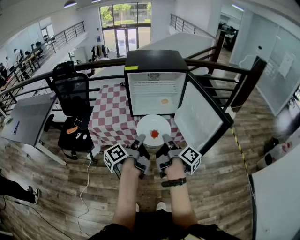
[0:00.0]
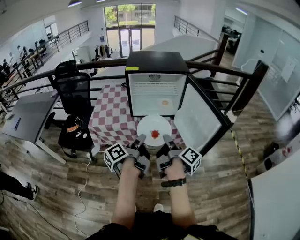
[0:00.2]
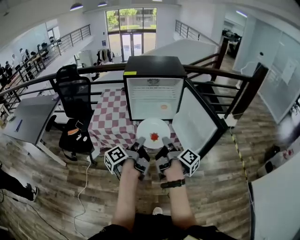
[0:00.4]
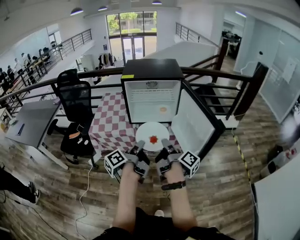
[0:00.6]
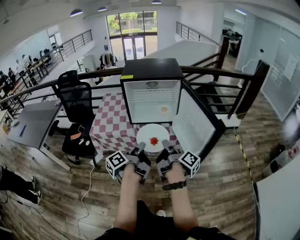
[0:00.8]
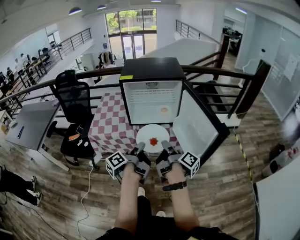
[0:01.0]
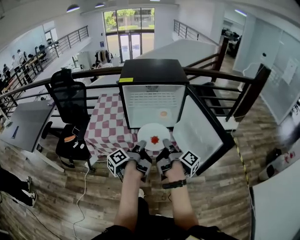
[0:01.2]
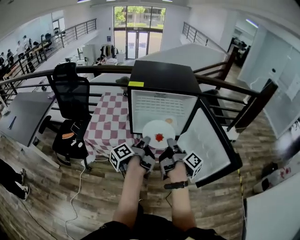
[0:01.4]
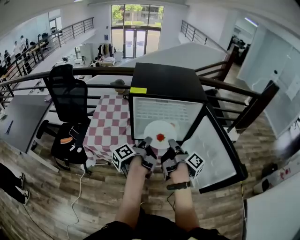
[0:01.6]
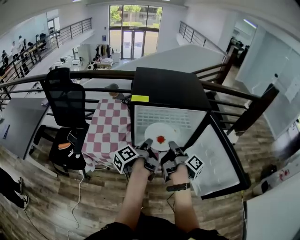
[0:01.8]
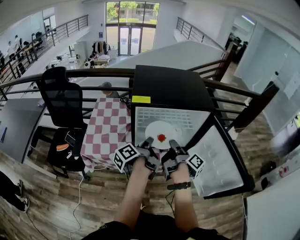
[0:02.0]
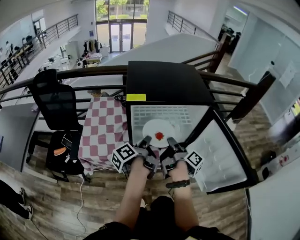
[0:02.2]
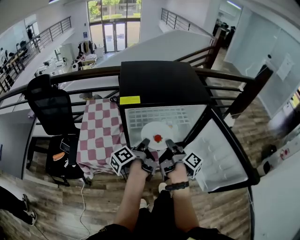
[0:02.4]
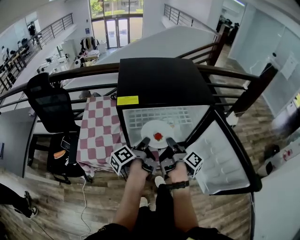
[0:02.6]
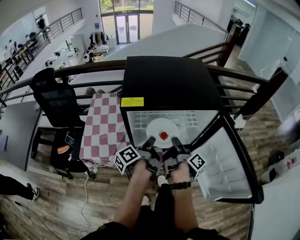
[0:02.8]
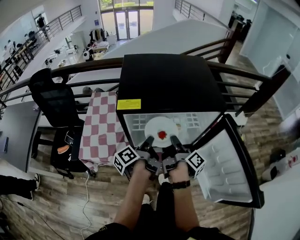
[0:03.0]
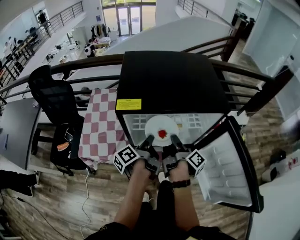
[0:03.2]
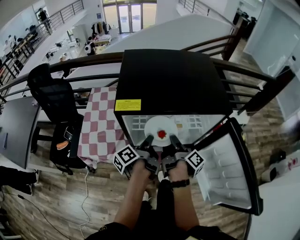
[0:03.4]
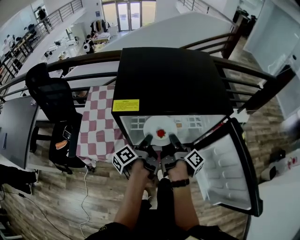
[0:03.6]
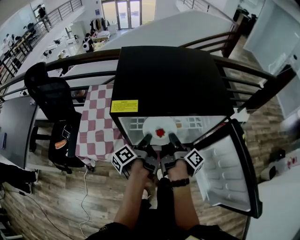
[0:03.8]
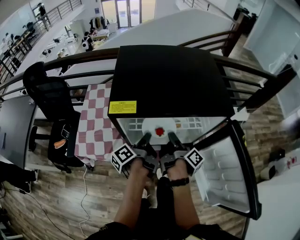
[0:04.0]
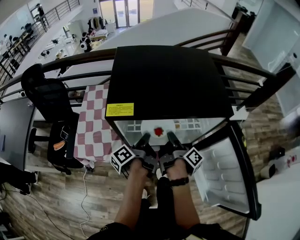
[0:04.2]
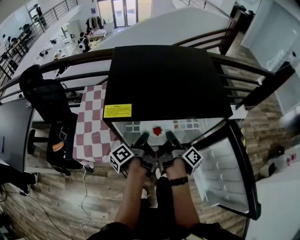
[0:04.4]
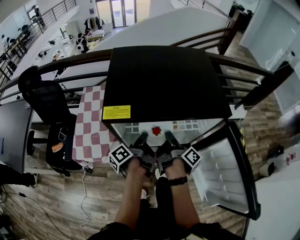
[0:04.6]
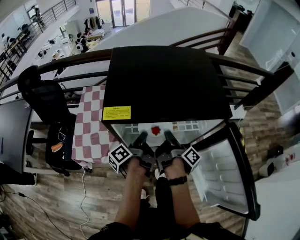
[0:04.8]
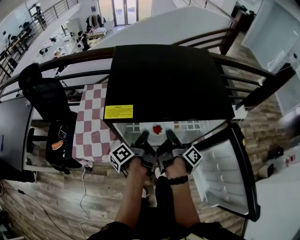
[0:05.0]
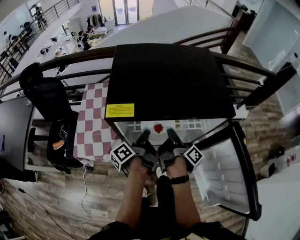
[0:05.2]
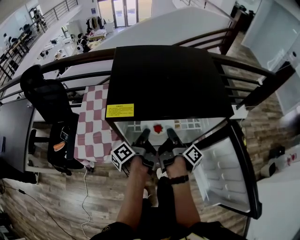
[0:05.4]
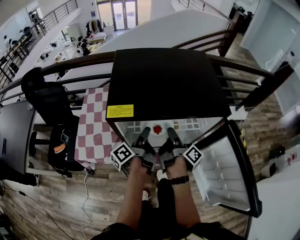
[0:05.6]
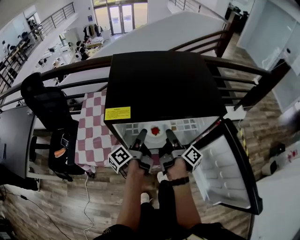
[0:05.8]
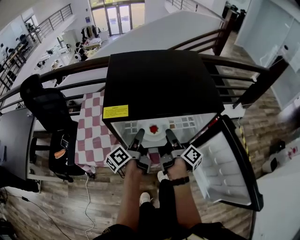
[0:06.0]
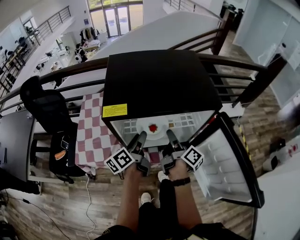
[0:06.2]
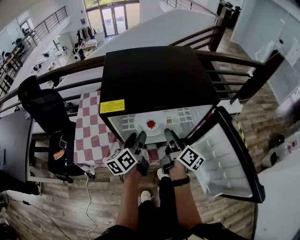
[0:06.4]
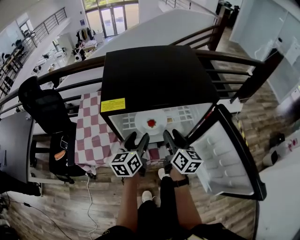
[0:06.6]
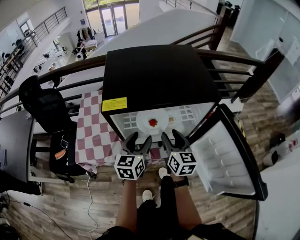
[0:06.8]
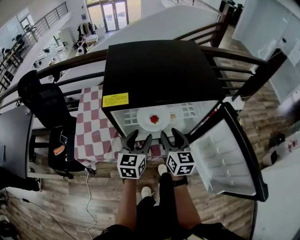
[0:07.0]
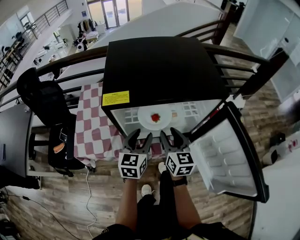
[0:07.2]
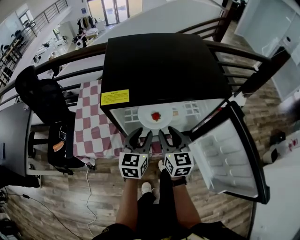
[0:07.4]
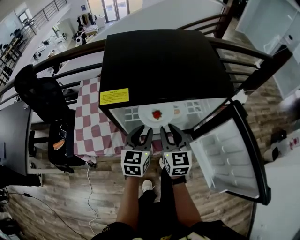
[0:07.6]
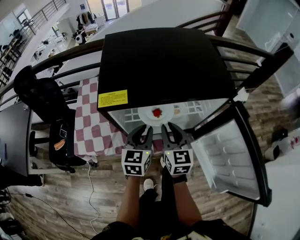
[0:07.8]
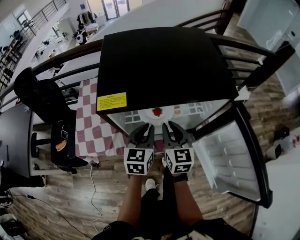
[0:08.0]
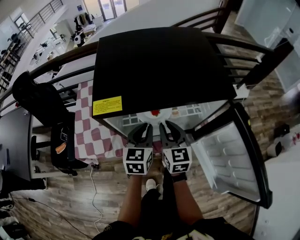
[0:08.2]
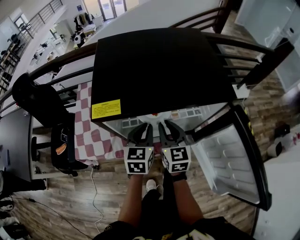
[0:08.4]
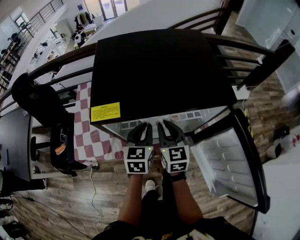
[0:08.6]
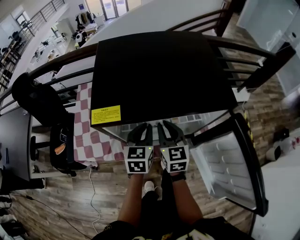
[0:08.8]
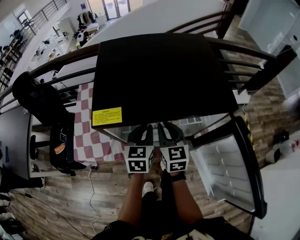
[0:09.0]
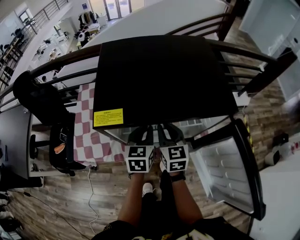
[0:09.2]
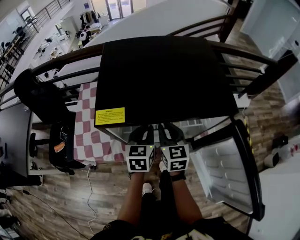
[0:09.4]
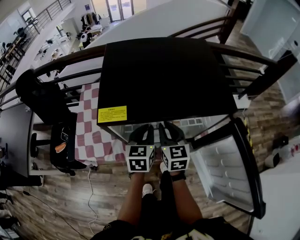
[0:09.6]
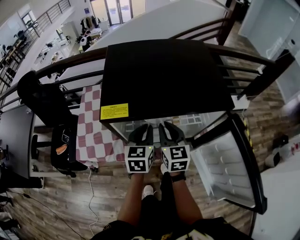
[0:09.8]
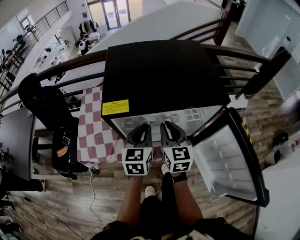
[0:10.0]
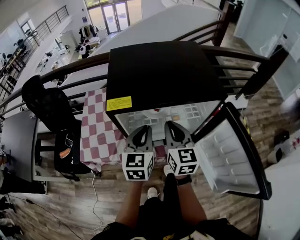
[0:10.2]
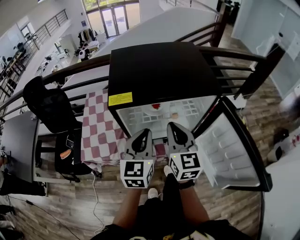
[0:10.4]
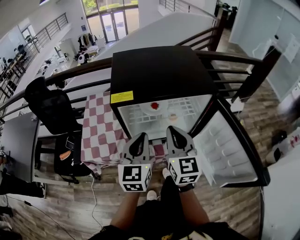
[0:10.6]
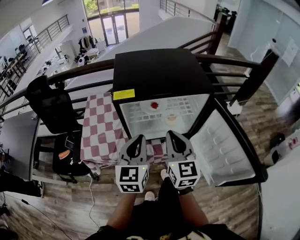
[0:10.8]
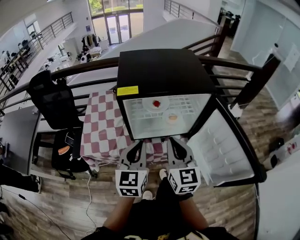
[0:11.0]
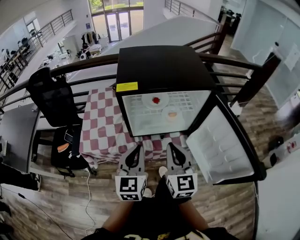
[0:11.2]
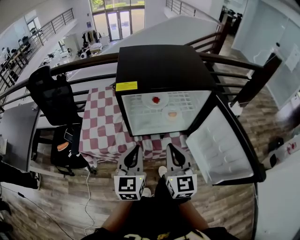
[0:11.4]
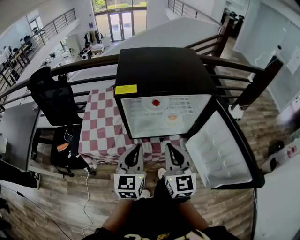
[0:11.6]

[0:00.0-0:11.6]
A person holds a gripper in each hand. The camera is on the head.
0:00.0 to 0:01.4: Both grippers travel together forward, some 15 cm.
0:01.4 to 0:02.8: The right gripper heads forward and downward, covering about 20 cm. The left gripper is displaced forward by roughly 20 cm.
0:02.8 to 0:04.4: The two grippers go roughly 5 cm forward.
0:04.4 to 0:05.8: The left gripper opens its fingers, while the right gripper opens its fingers.
0:05.8 to 0:07.2: The left gripper moves about 5 cm, and rotates around the line of its fingers by approximately 70 degrees, clockwise from behind; the right gripper changes place by about 5 cm, and rolls counterclockwise, seen from behind, by roughly 80 degrees.
0:07.2 to 0:08.8: The two grippers go approximately 5 cm forward. The left gripper closes; the right gripper closes up.
0:08.8 to 0:10.2: The two grippers go about 10 cm upward and backward.
0:10.2 to 0:11.6: The grippers both shift backward by approximately 15 cm.

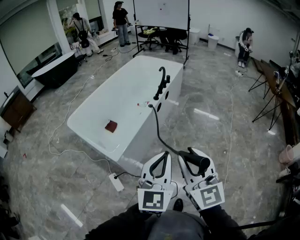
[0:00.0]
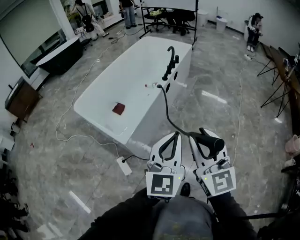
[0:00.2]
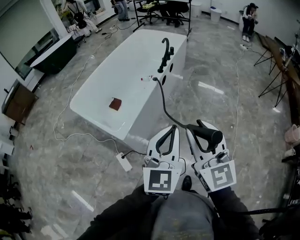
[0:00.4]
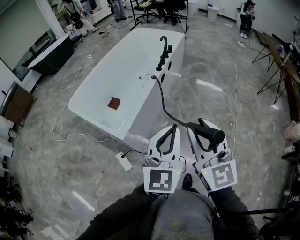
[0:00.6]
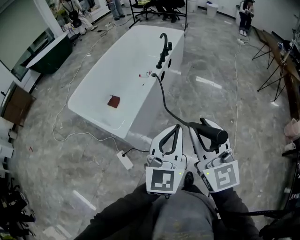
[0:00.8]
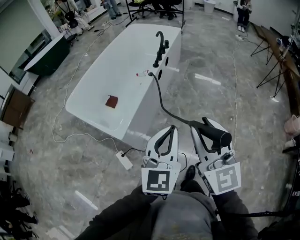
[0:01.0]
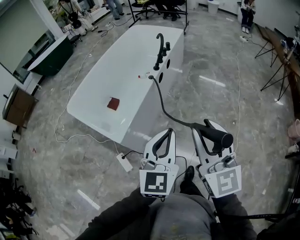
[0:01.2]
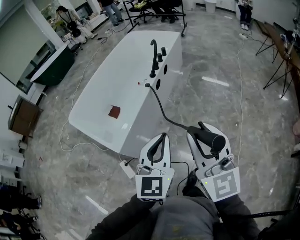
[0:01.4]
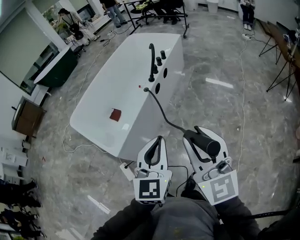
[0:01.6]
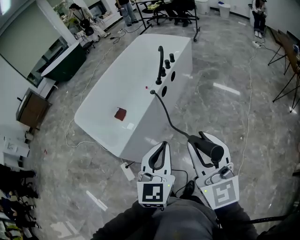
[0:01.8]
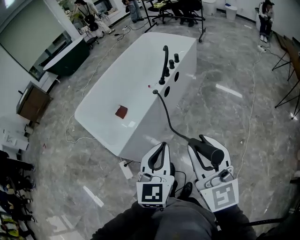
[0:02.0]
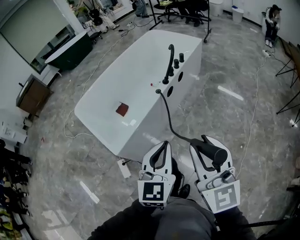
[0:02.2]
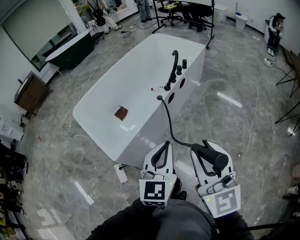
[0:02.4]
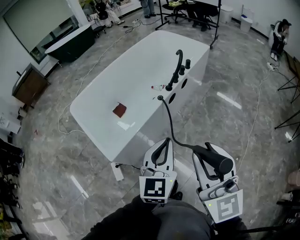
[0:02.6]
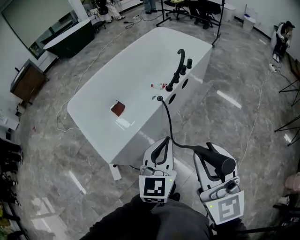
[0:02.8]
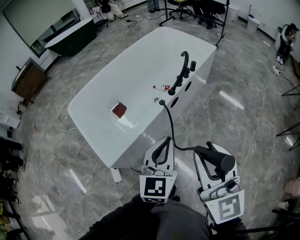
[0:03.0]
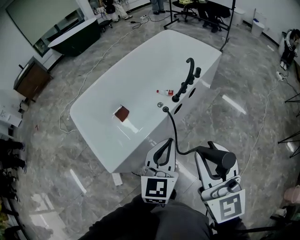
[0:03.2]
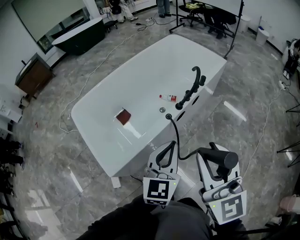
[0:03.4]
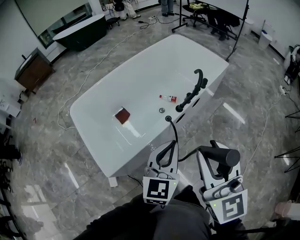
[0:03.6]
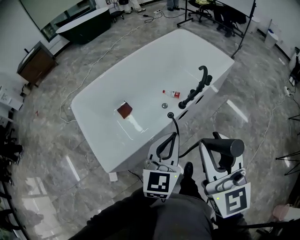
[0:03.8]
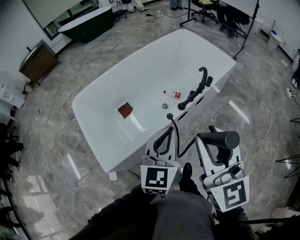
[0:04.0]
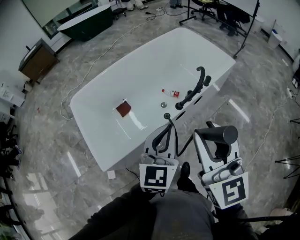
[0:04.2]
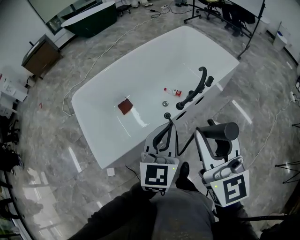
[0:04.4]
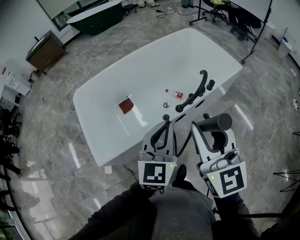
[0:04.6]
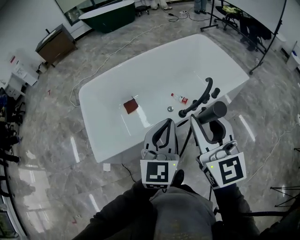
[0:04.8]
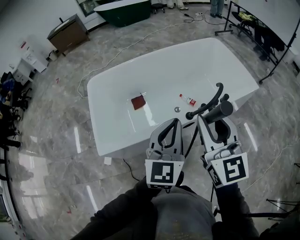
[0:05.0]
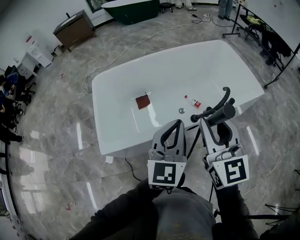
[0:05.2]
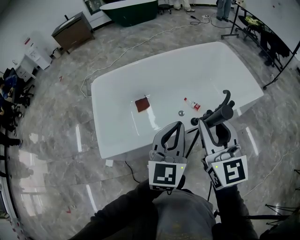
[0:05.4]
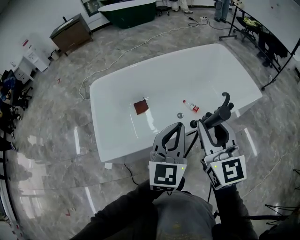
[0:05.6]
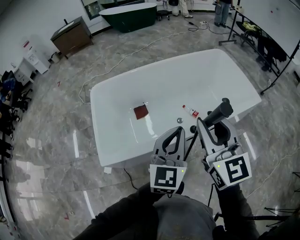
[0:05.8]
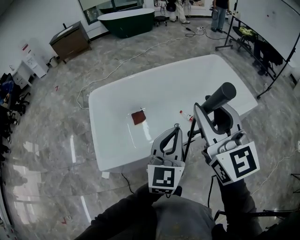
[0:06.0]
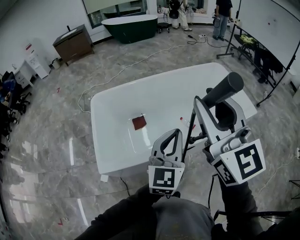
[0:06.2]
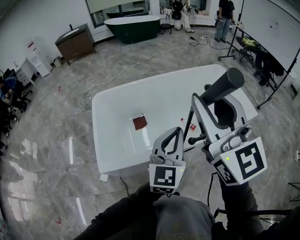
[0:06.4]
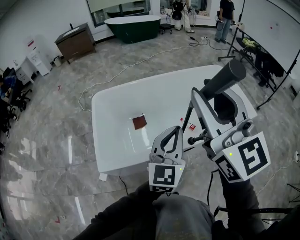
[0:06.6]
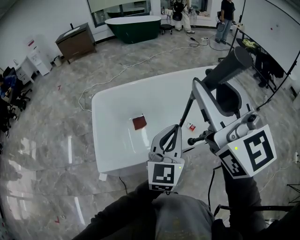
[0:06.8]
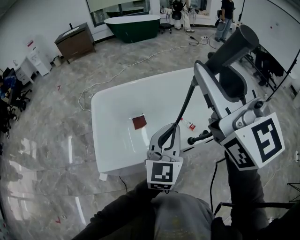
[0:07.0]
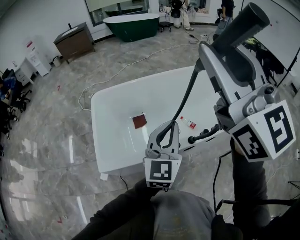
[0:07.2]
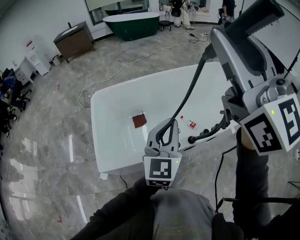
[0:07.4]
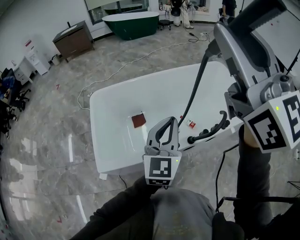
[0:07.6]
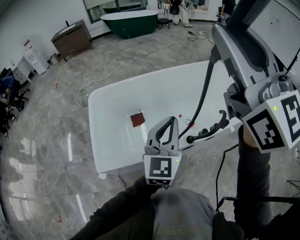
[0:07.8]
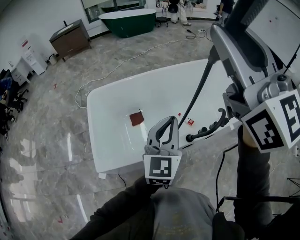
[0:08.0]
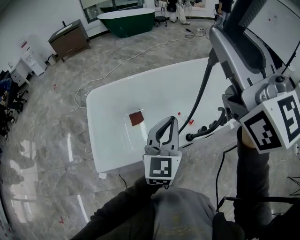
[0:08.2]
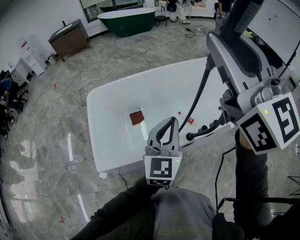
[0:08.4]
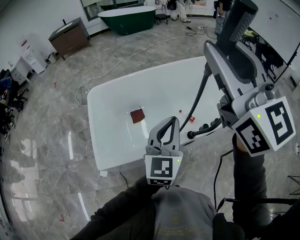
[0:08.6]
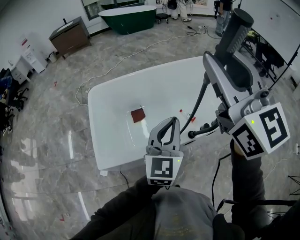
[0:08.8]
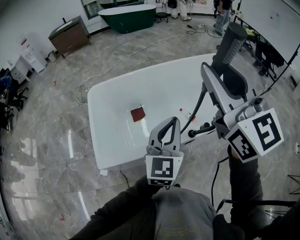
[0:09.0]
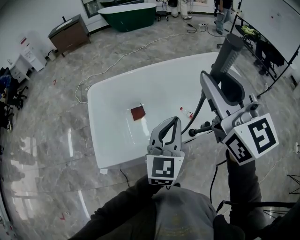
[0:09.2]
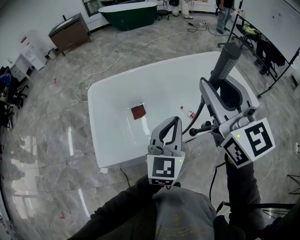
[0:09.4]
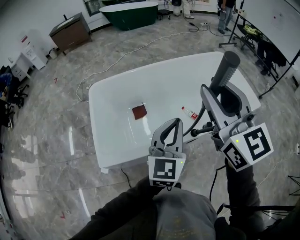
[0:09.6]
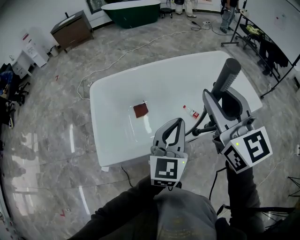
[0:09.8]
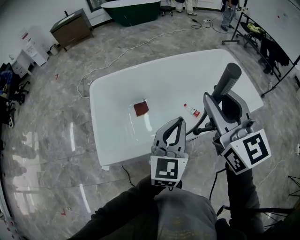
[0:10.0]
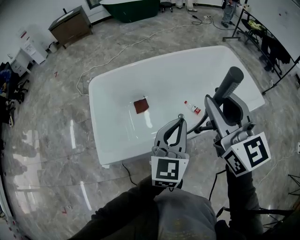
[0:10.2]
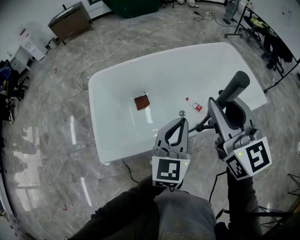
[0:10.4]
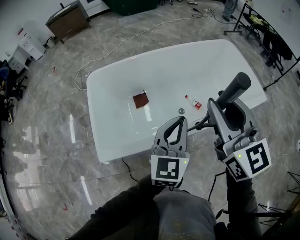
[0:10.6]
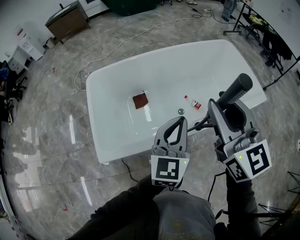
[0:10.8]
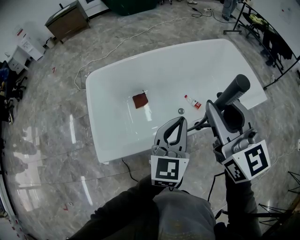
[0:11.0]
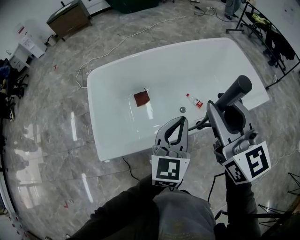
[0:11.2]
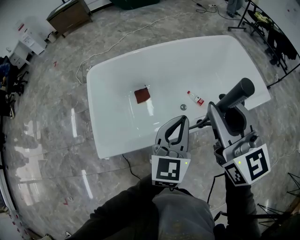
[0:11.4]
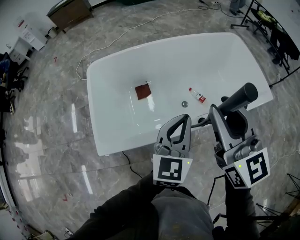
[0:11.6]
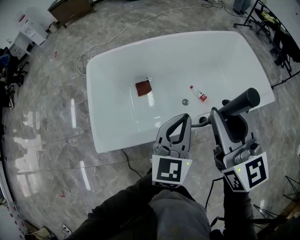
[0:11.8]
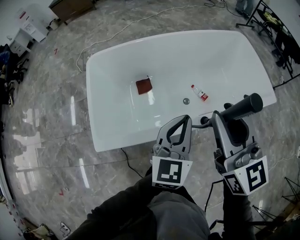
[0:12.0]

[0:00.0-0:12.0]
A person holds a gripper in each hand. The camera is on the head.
0:00.0 to 0:01.6: The left gripper moves forward and to the right, approximately 15 cm. The right gripper moves to the right and forward, some 15 cm.
0:01.6 to 0:03.0: The two grippers go approximately 20 cm forward.
0:03.0 to 0:04.4: Both grippers move forward, about 20 cm.
0:04.4 to 0:06.0: The left gripper shifts some 10 cm forward, while the right gripper travels forward by about 15 cm.
0:06.0 to 0:07.6: The left gripper changes place by approximately 5 cm. Meanwhile the right gripper is displaced upward by some 20 cm, and turns by approximately 20 degrees.
0:07.6 to 0:09.0: The right gripper travels downward by approximately 10 cm.
0:09.0 to 0:10.4: The right gripper moves downward, about 10 cm.
0:10.4 to 0:12.0: Both grippers travel together downward, some 5 cm.
